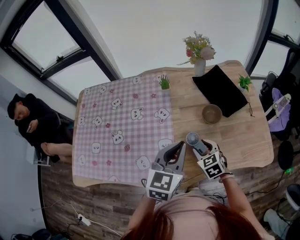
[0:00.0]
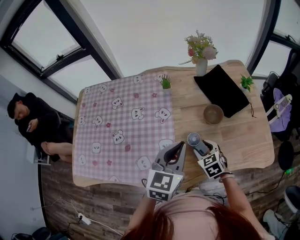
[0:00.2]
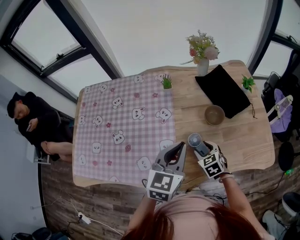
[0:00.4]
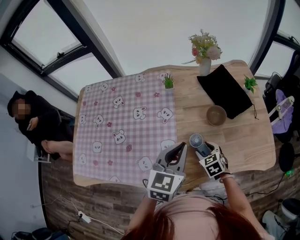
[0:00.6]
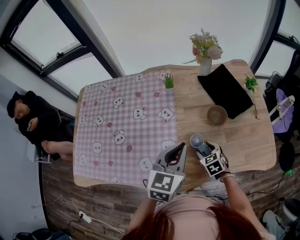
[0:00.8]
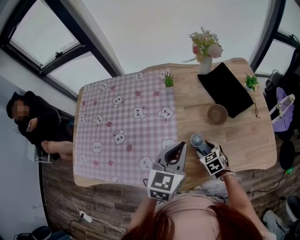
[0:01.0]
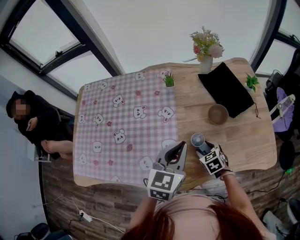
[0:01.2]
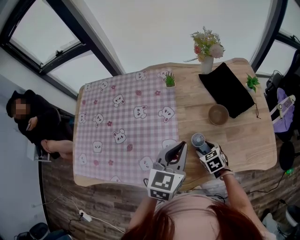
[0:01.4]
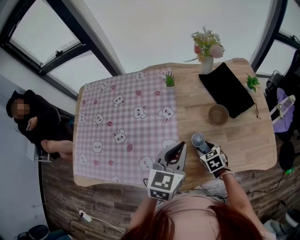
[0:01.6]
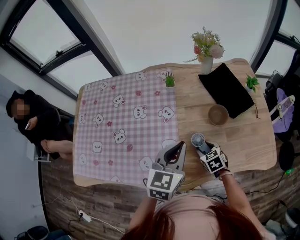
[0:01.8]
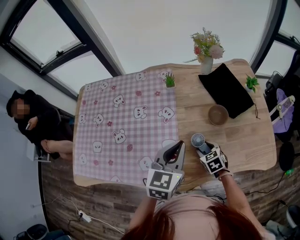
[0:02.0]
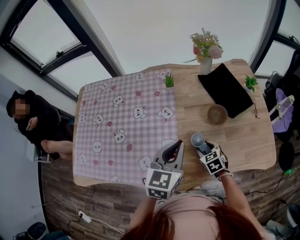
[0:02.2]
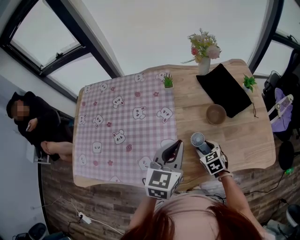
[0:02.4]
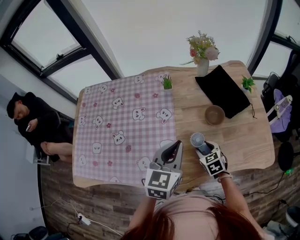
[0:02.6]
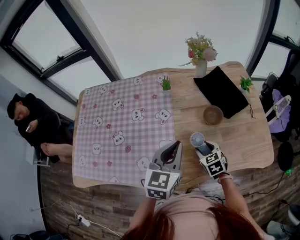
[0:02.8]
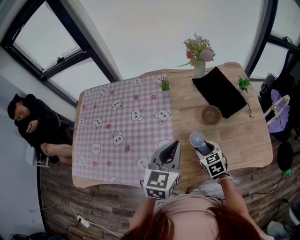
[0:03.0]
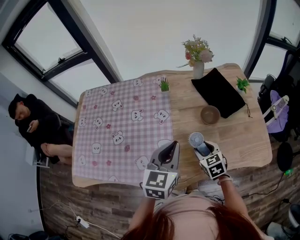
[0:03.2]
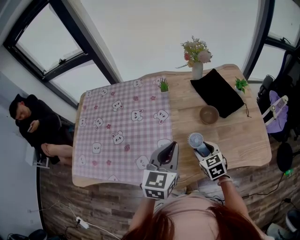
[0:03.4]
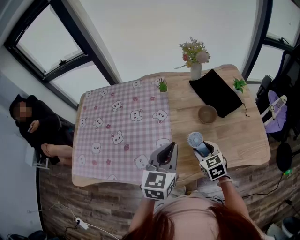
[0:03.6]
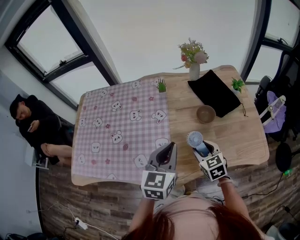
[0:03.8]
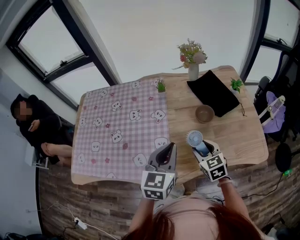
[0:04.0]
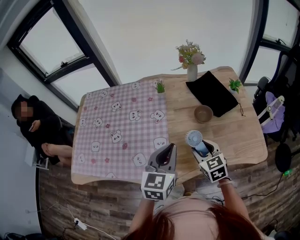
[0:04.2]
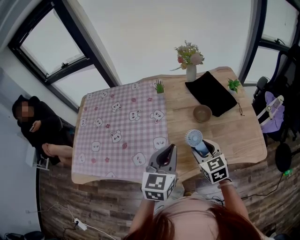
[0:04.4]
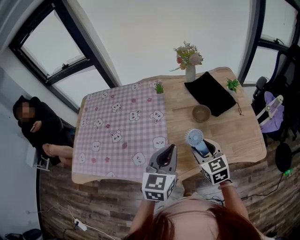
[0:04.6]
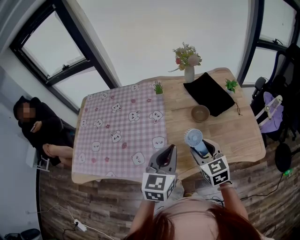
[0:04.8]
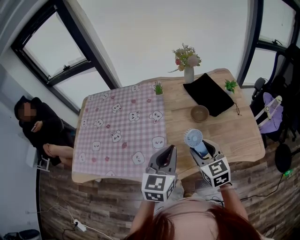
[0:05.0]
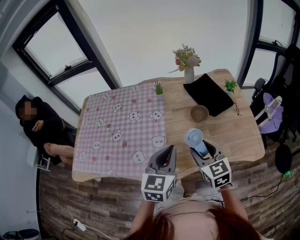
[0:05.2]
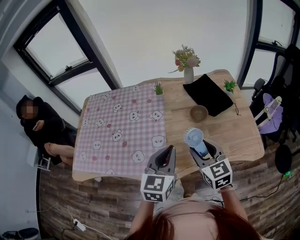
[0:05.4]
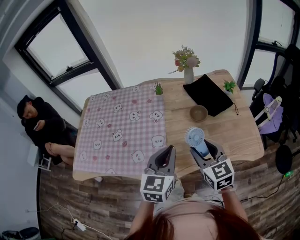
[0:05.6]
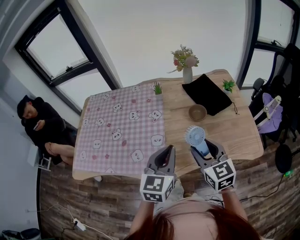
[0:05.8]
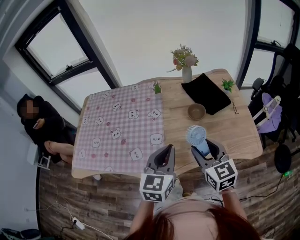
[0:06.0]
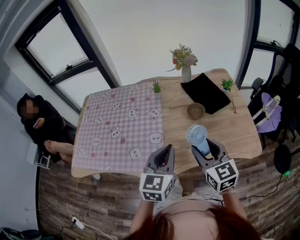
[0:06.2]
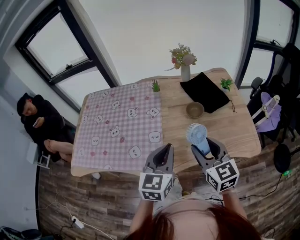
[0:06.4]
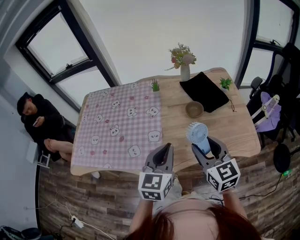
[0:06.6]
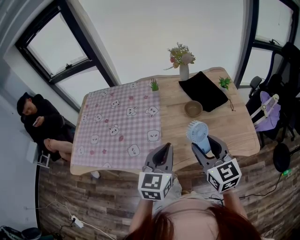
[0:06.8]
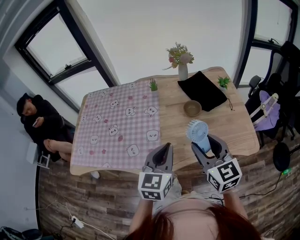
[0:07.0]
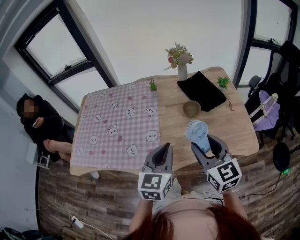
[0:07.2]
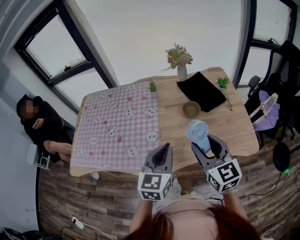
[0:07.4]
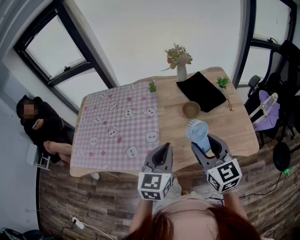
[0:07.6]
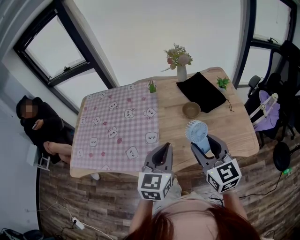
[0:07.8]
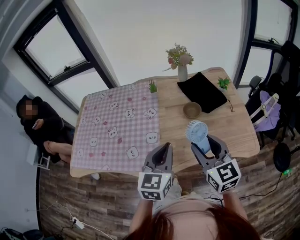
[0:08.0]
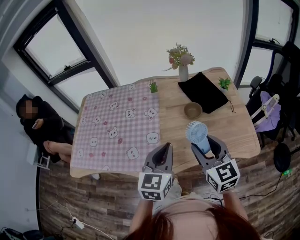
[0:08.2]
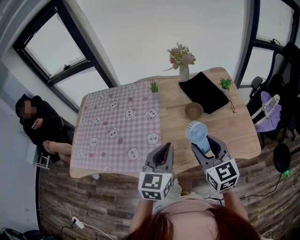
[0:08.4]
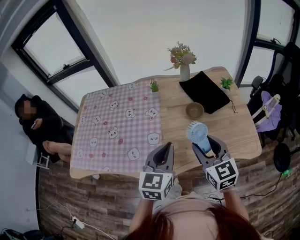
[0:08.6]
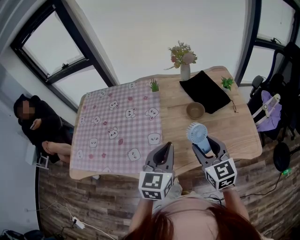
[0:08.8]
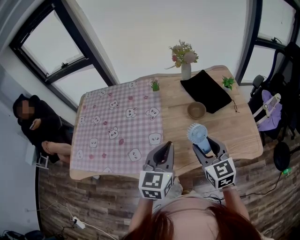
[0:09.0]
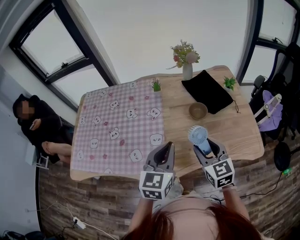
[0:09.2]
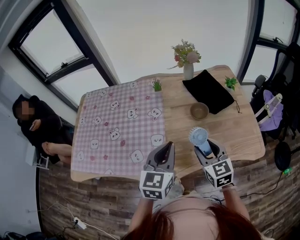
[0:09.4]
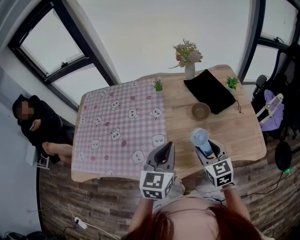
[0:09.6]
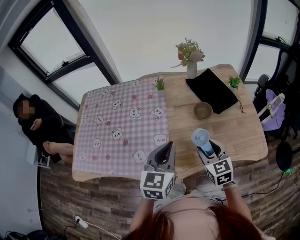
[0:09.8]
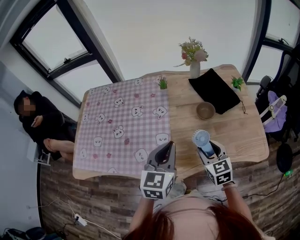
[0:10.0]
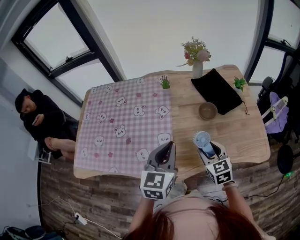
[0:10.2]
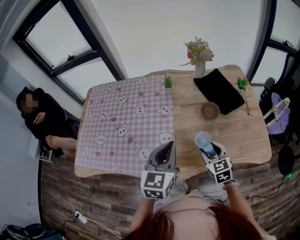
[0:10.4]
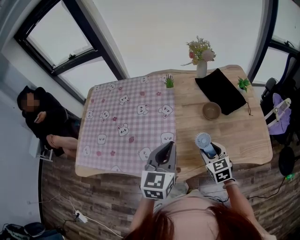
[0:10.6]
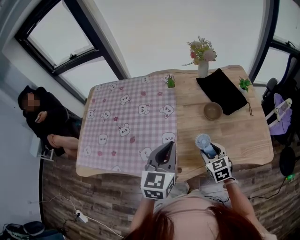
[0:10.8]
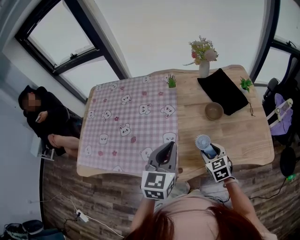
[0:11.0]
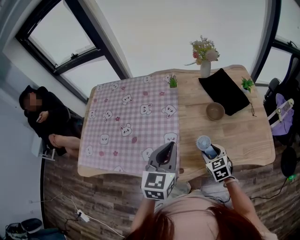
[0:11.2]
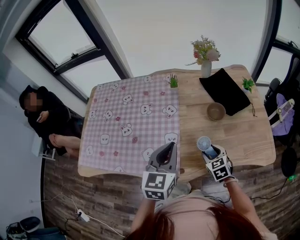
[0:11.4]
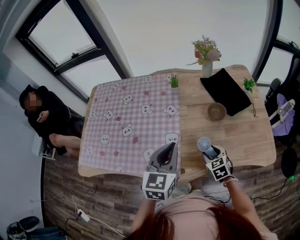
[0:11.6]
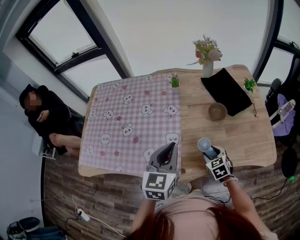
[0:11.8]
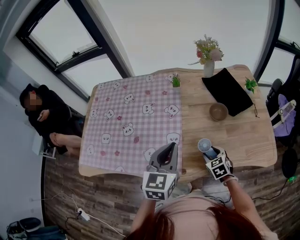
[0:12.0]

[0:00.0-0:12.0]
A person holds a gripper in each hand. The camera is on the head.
0.0 to 1.6 s: The right gripper heads downward, covering about 10 cm.
1.6 to 3.0 s: The right gripper moves upward, roughly 5 cm.
3.0 to 4.4 s: The left gripper shifts about 5 cm backward, while the right gripper is displaced upward and backward by approximately 10 cm.
4.4 to 6.0 s: The right gripper shifts approximately 10 cm upward and backward. Meanwhile the left gripper travels backward by approximately 5 cm.
6.0 to 7.6 s: The right gripper shifts by about 5 cm.
7.6 to 9.0 s: The right gripper travels downward by approximately 5 cm. Meanwhile the left gripper shifts by roughly 5 cm.
9.0 to 10.4 s: The right gripper is displaced downward by roughly 10 cm. Meanwhile the left gripper heads to the left, covering some 5 cm.
10.4 to 12.0 s: The right gripper heads downward, covering some 10 cm.

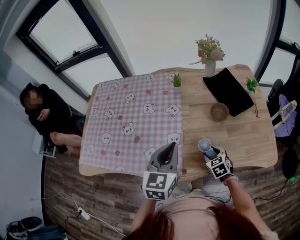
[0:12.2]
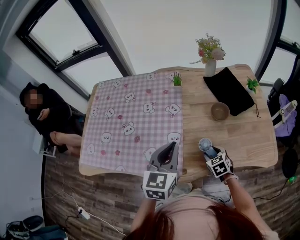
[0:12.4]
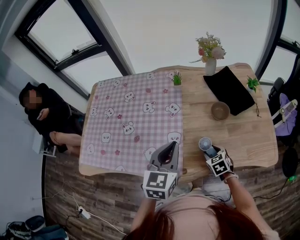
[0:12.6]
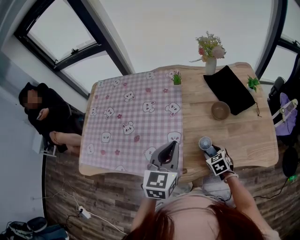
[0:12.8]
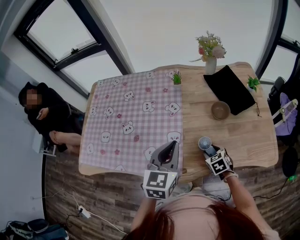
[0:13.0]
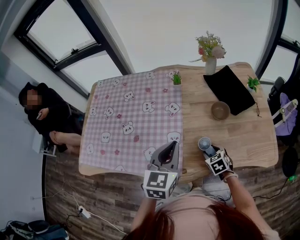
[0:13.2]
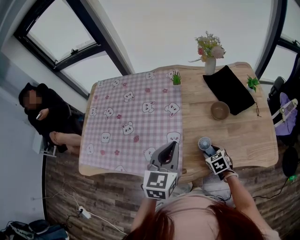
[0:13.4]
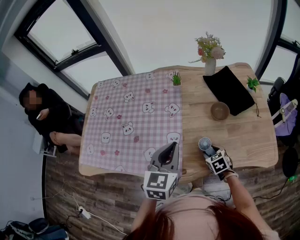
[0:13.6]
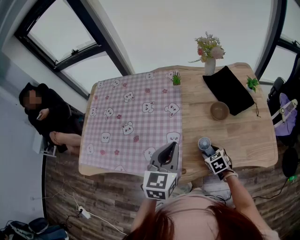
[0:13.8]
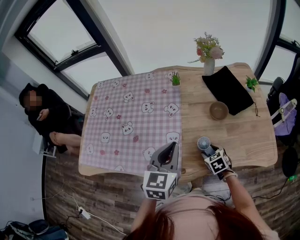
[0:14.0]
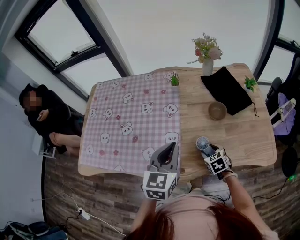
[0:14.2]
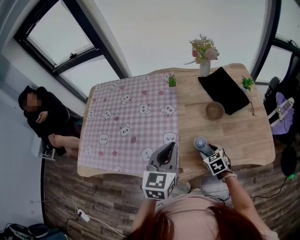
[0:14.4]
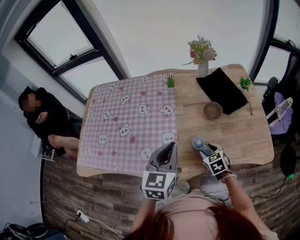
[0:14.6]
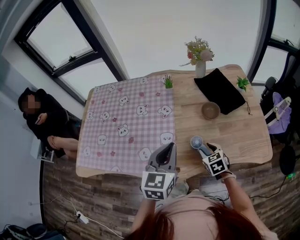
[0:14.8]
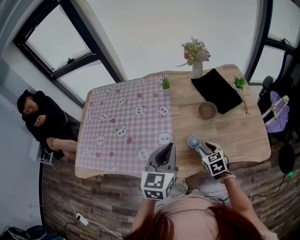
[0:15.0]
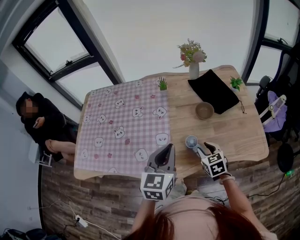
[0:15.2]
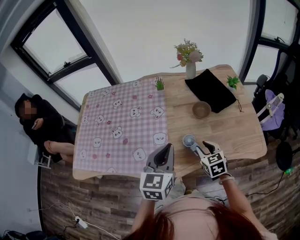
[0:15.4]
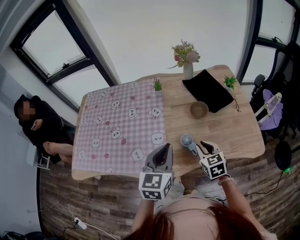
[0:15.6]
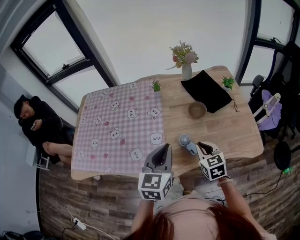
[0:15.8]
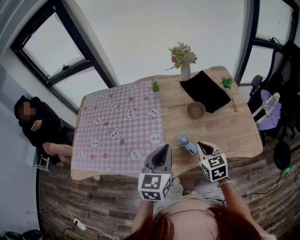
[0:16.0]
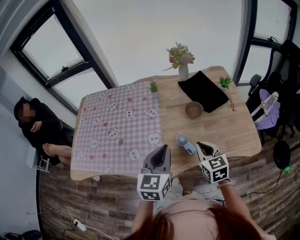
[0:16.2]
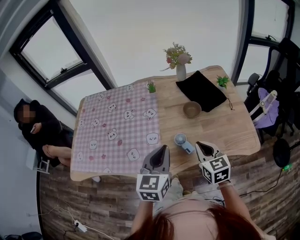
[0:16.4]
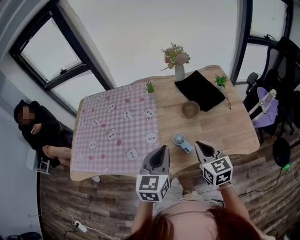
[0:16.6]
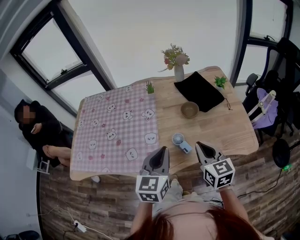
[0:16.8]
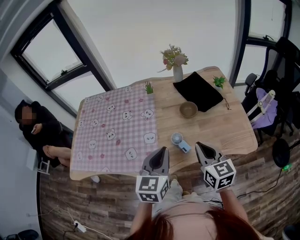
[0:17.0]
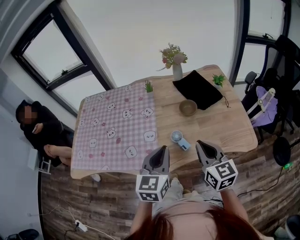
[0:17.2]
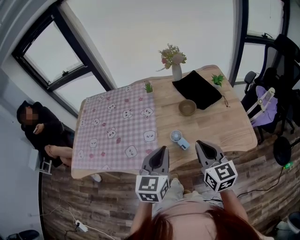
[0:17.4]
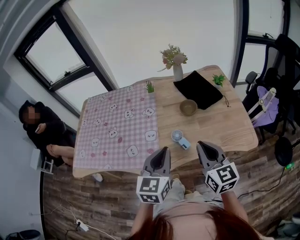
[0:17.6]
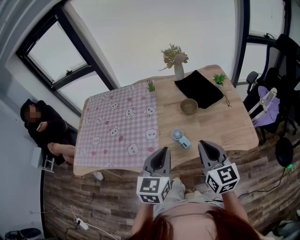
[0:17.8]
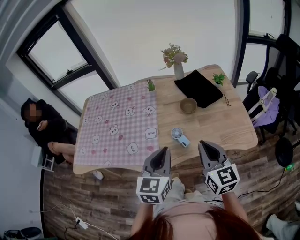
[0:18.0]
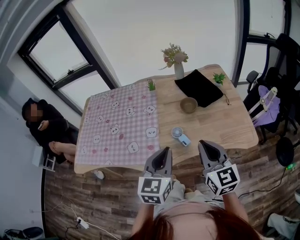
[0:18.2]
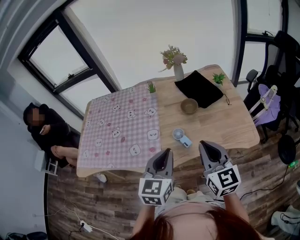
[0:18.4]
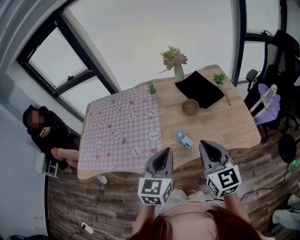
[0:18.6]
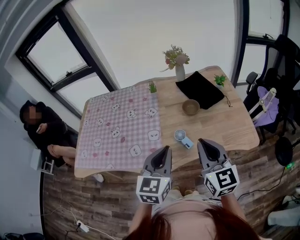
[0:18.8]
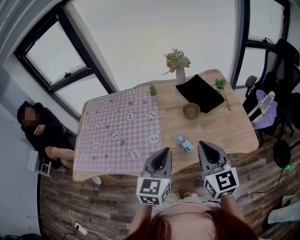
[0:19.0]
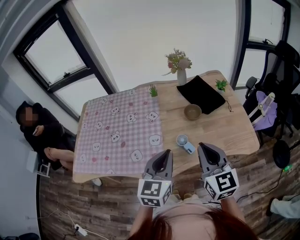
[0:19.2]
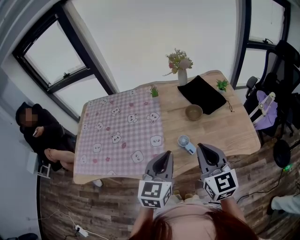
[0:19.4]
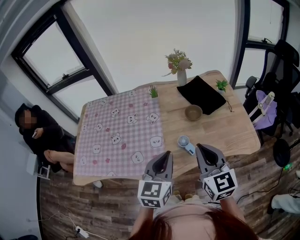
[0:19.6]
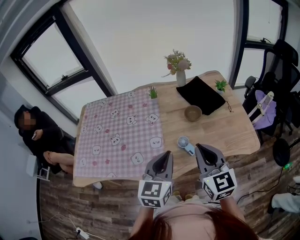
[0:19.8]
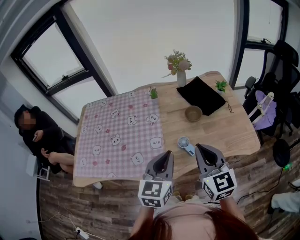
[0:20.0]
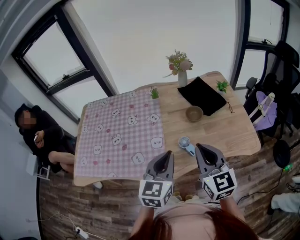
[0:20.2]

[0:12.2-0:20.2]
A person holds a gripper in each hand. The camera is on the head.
12.2 to 13.8 s: The grippers stay close to where they were, moving slightly.
13.8 to 15.4 s: The right gripper shifts roughly 10 cm upward, changes its angle by some 20 degrees, and closes its fingers, while the left gripper moves some 5 cm.
15.4 to 17.0 s: The right gripper is displaced upward and backward by about 15 cm, changes its angle by some 20 degrees, and closes up; the left gripper travels backward by roughly 5 cm.
17.0 to 18.6 s: The left gripper ends up roughly 5 cm from where it was. The right gripper travels upward and backward by some 10 cm.
18.6 to 20.2 s: The right gripper moves to the left, approximately 5 cm; the left gripper changes place by about 5 cm.

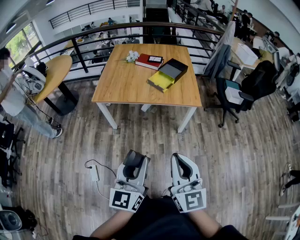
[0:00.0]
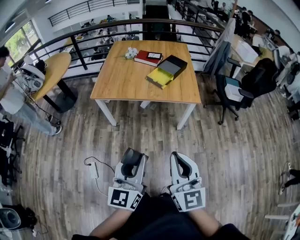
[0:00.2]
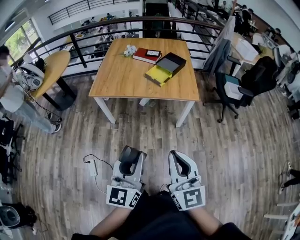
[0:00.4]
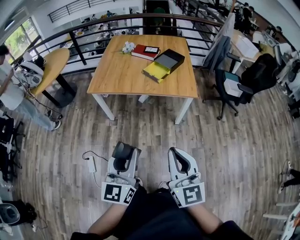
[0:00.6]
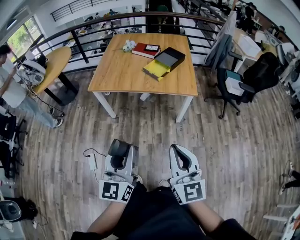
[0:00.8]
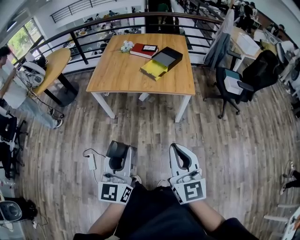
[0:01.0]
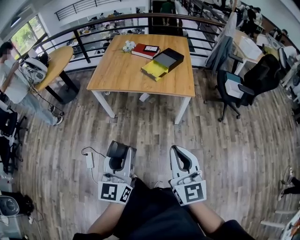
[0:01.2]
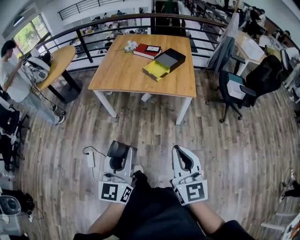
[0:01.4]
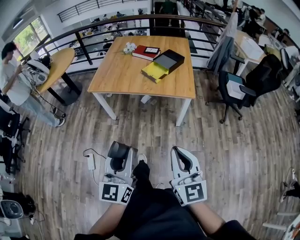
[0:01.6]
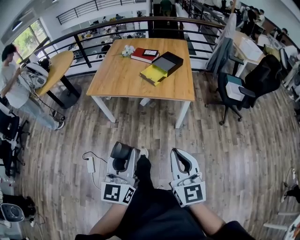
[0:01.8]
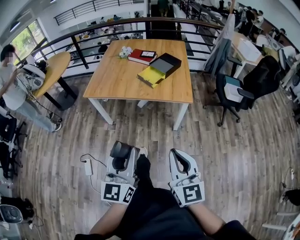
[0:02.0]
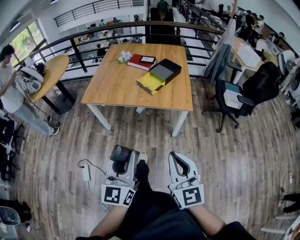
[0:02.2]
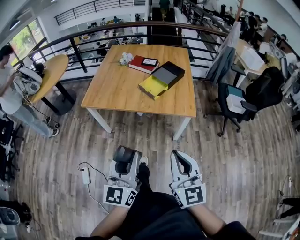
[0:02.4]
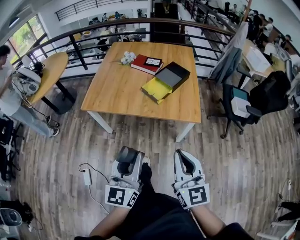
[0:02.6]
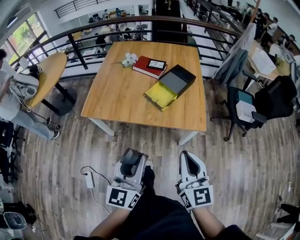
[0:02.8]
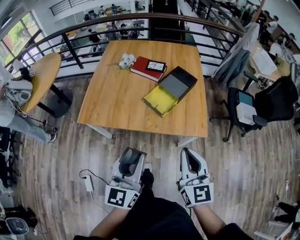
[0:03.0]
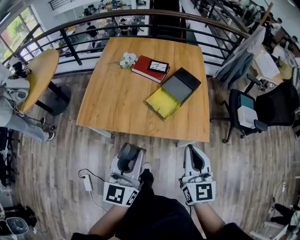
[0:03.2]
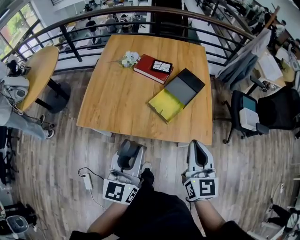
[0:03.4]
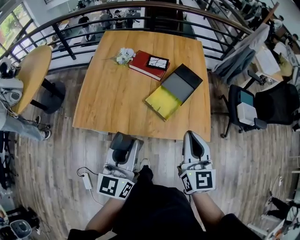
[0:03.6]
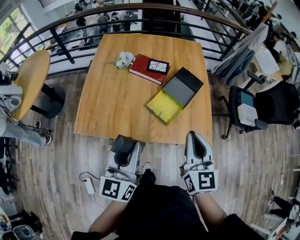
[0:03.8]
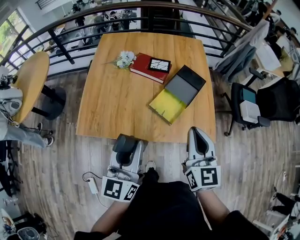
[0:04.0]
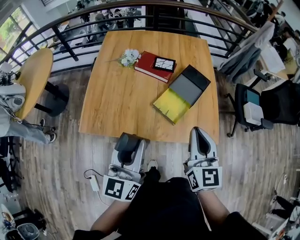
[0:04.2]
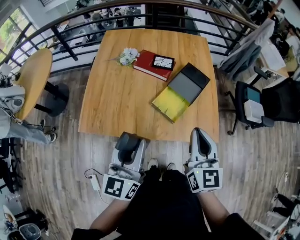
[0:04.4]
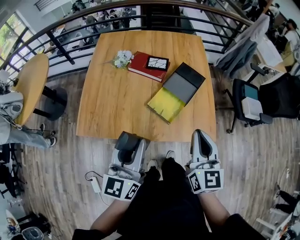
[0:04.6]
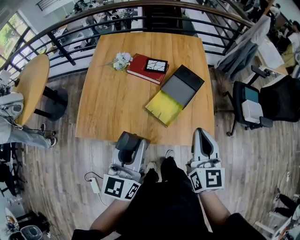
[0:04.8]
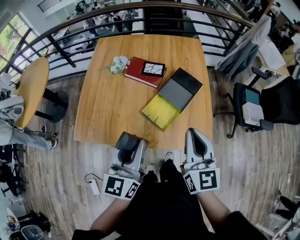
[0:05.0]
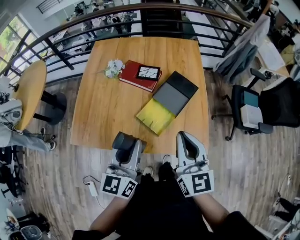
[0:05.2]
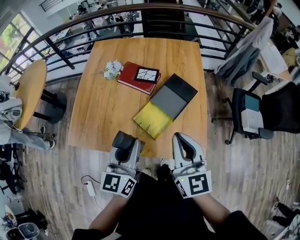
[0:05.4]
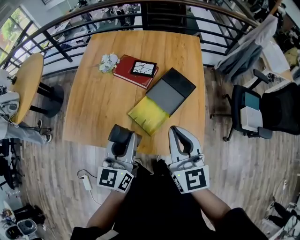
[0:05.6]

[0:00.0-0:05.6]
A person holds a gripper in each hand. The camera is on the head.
0.0 to 1.4 s: The right gripper is displaced to the right by roughly 15 cm; the left gripper shifts roughly 5 cm to the right.
1.4 to 2.8 s: The two grippers go approximately 30 cm forward.
2.8 to 4.2 s: The left gripper travels forward and to the left by some 25 cm, while the right gripper travels forward by roughly 25 cm.
4.2 to 5.6 s: The right gripper moves forward and to the right, about 10 cm. The left gripper moves to the right, forward and downward, approximately 20 cm.
